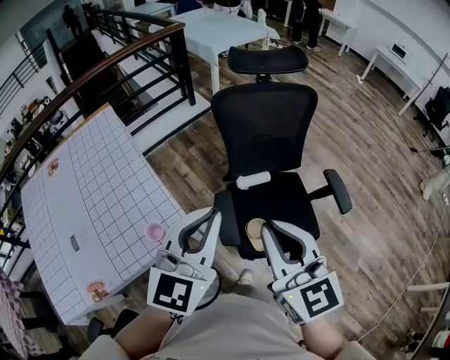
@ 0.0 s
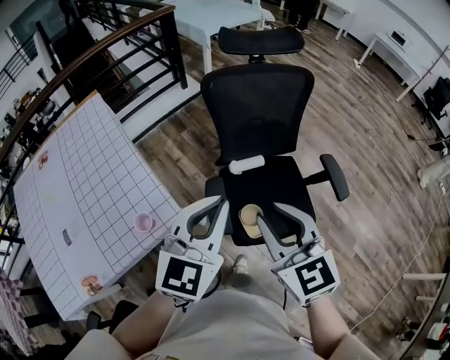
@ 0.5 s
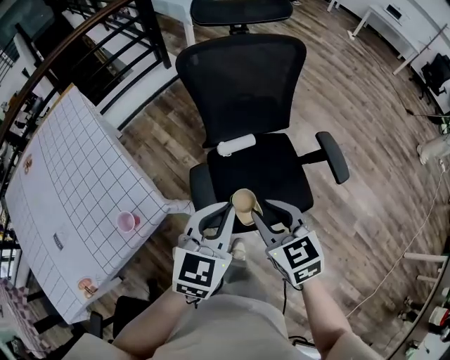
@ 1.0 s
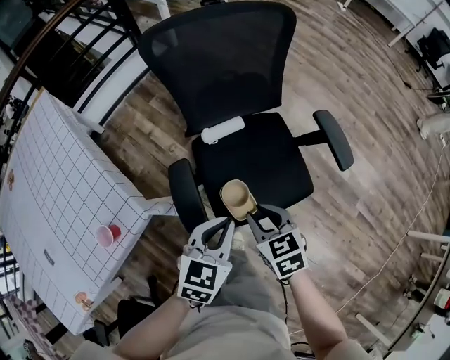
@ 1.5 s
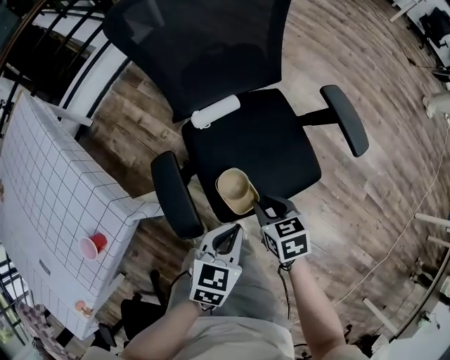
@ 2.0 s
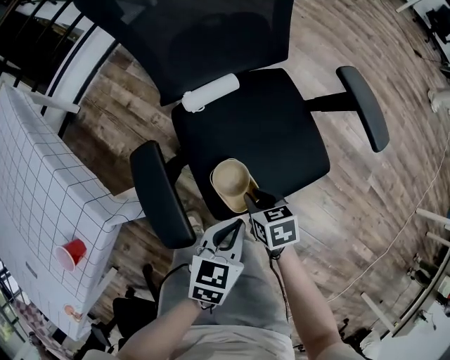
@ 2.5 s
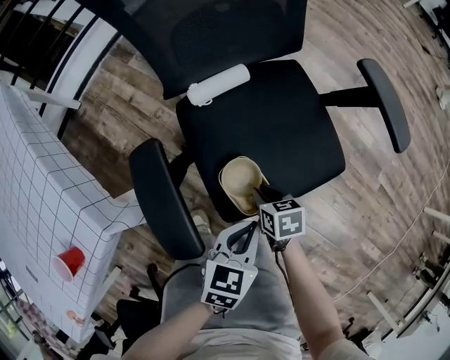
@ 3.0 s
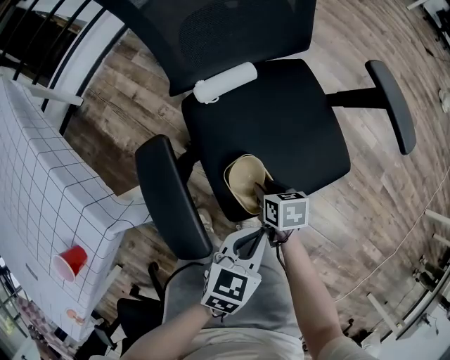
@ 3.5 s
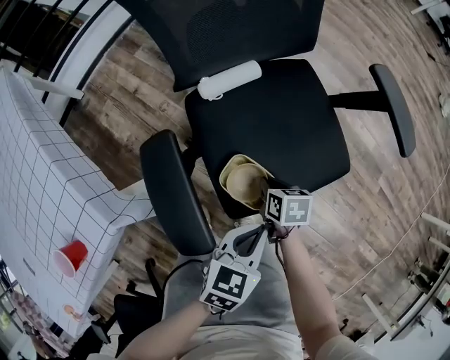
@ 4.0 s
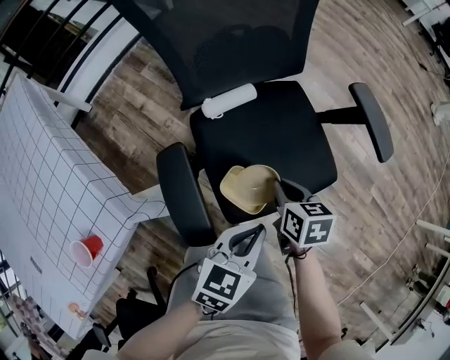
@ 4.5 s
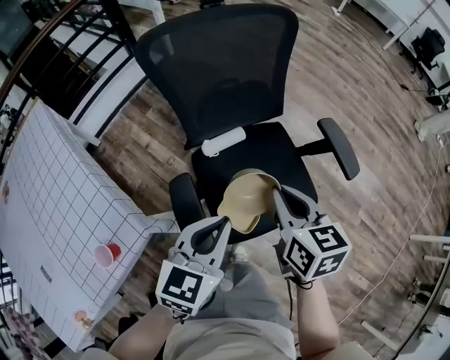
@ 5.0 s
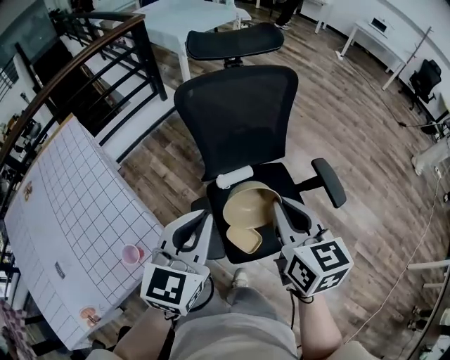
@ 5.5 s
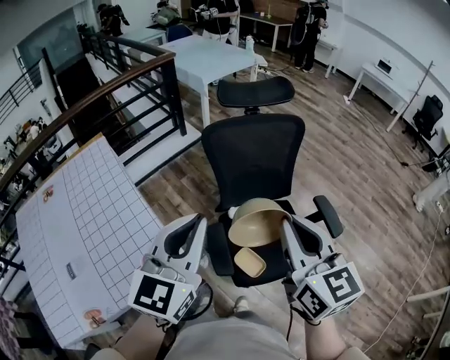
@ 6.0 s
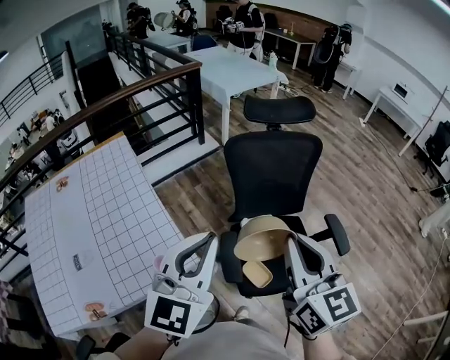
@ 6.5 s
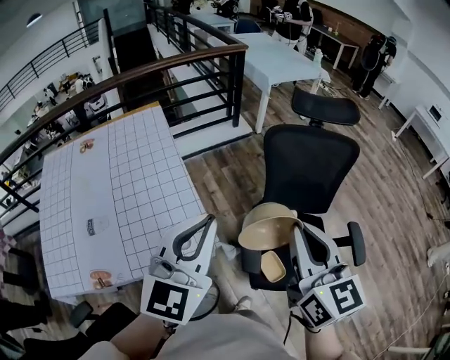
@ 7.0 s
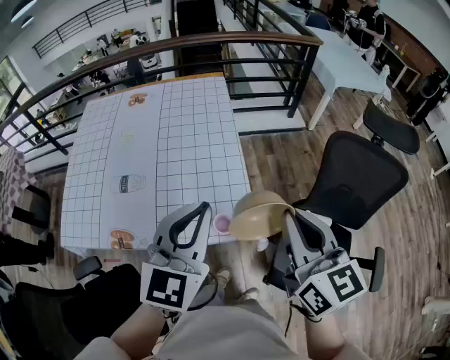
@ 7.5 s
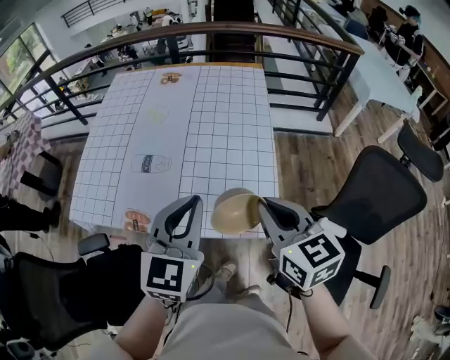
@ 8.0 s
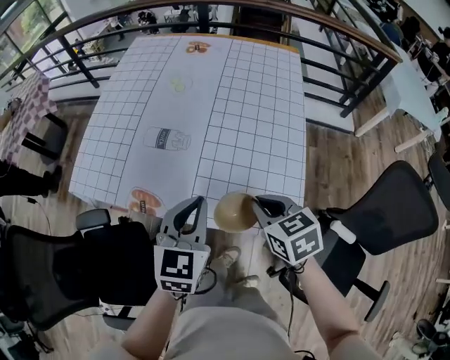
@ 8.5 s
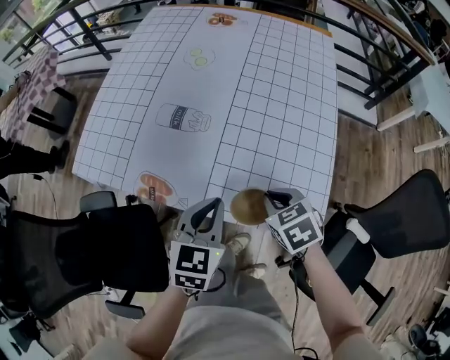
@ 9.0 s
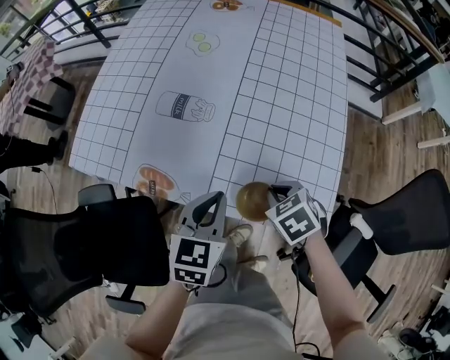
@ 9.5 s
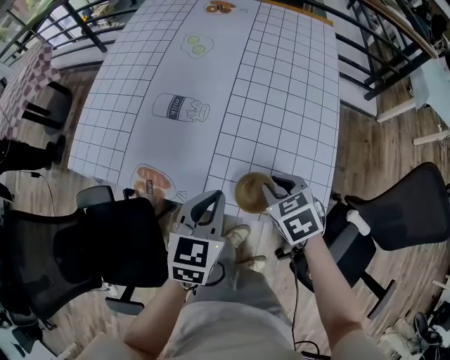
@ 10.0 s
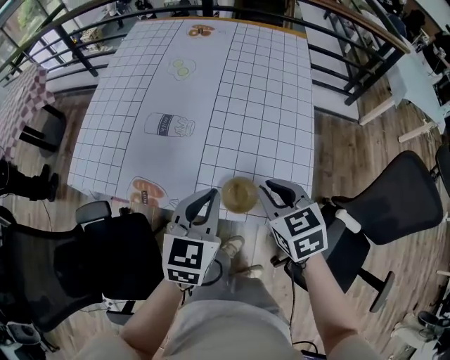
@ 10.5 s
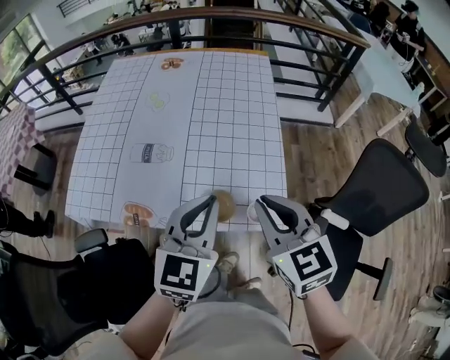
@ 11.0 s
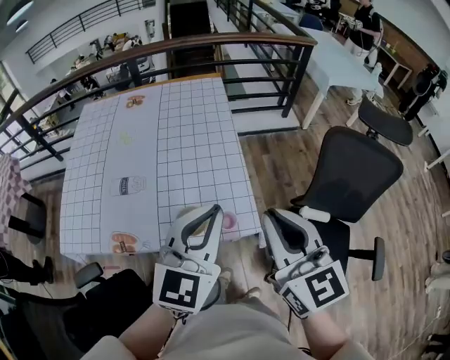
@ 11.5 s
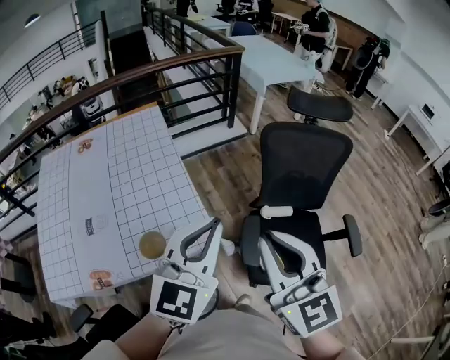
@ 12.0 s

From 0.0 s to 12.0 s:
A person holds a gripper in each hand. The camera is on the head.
From 0.0 s to 2.0 s: The right gripper goes some 50 cm downward, and tilts its fingers approximately 50 degrees downward; the left gripper heads downward and to the right, covering roughly 40 cm, and points its fingers approximately 40 degrees further downward.
From 2.0 s to 4.0 s: The right gripper shifts some 20 cm downward, and rotates some 20 degrees; the left gripper goes some 10 cm downward.
From 4.0 s to 6.0 s: The right gripper moves upward, roughly 70 cm, and points its fingers roughly 60 degrees further upward, while the left gripper goes roughly 60 cm upward and to the left, and points its fingers about 40 degrees further upward.
From 6.0 s to 8.0 s: The left gripper changes place by roughly 40 cm, and rotates some 50 degrees. The right gripper ends up approximately 40 cm from where it was, and changes its angle by roughly 60 degrees.
From 8.0 s to 10.0 s: Both grippers travel together downward, roughly 25 cm. The left gripper changes its angle by some 30 degrees; the right gripper angles its fingers downward, by approximately 40 degrees.
From 10.0 s to 12.0 s: The left gripper shifts by some 50 cm, and rotates some 50 degrees, while the right gripper shifts approximately 40 cm upward, and tilts its fingers about 60 degrees upward.

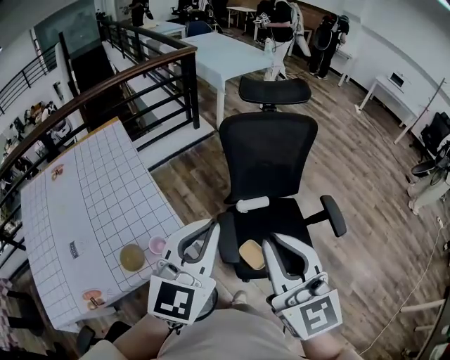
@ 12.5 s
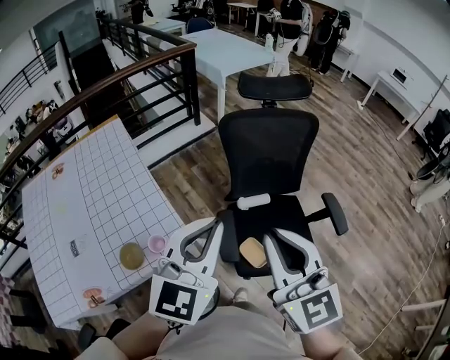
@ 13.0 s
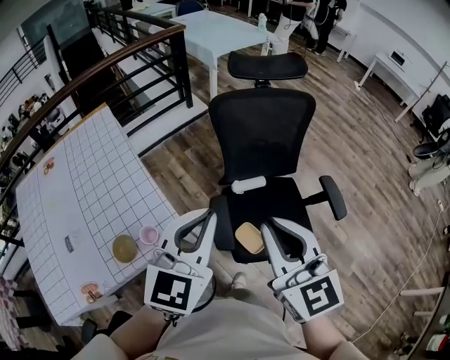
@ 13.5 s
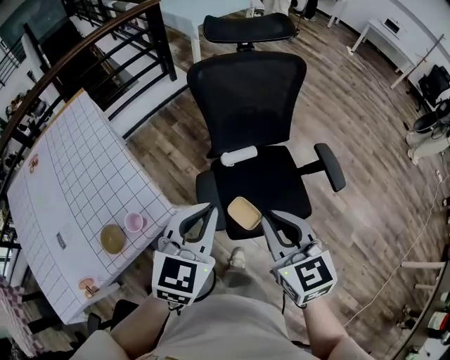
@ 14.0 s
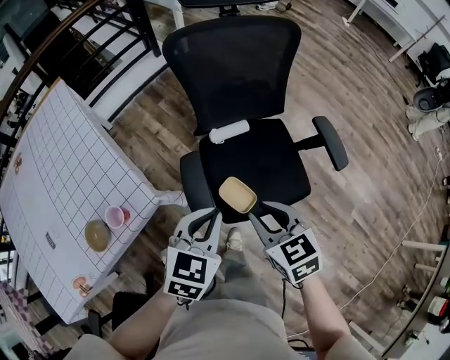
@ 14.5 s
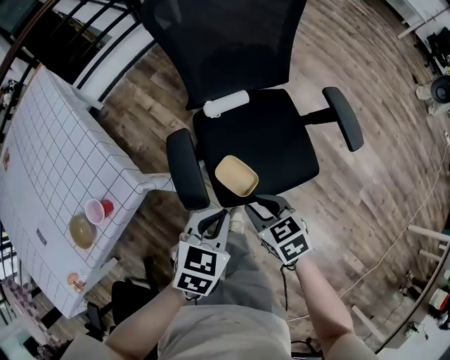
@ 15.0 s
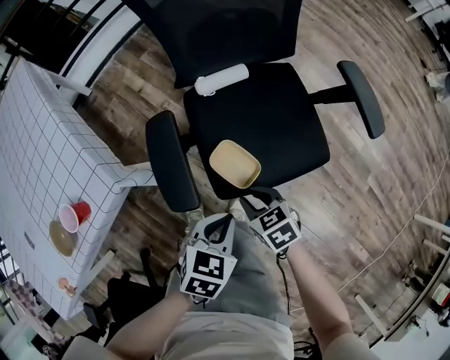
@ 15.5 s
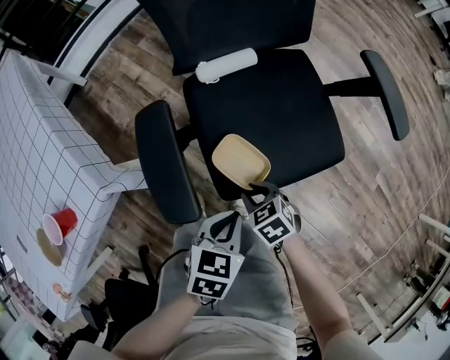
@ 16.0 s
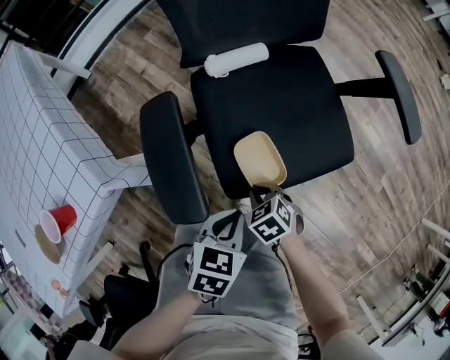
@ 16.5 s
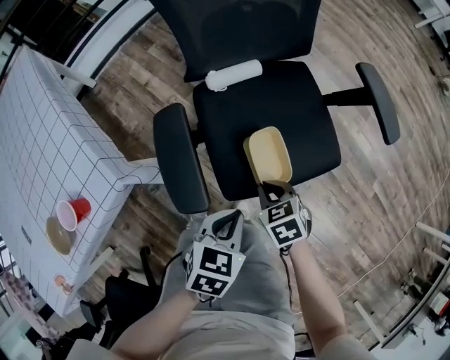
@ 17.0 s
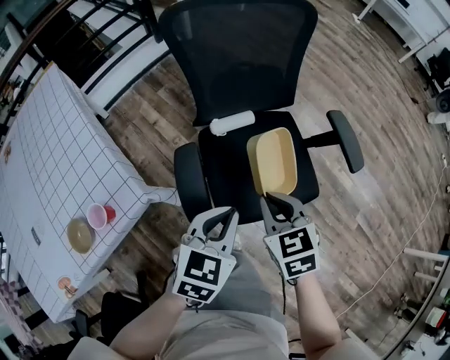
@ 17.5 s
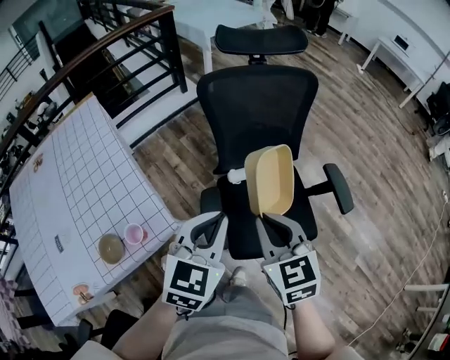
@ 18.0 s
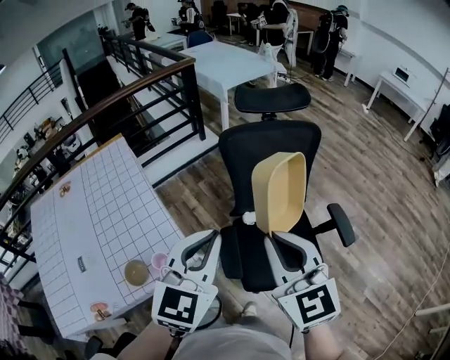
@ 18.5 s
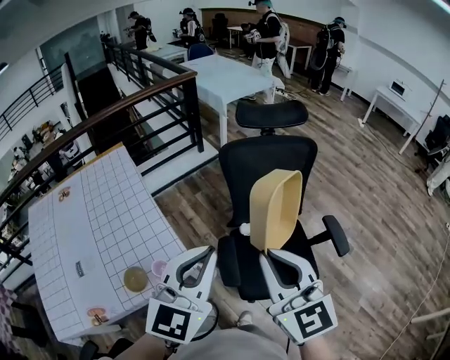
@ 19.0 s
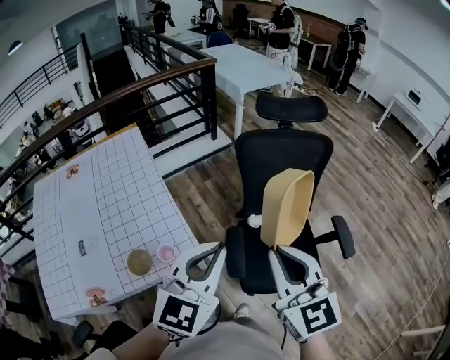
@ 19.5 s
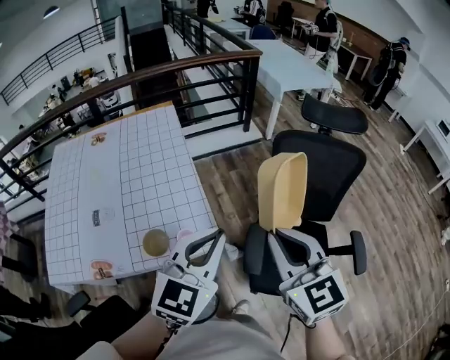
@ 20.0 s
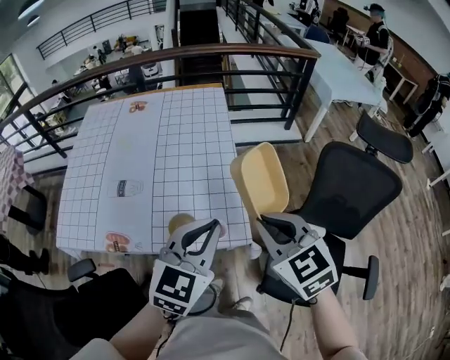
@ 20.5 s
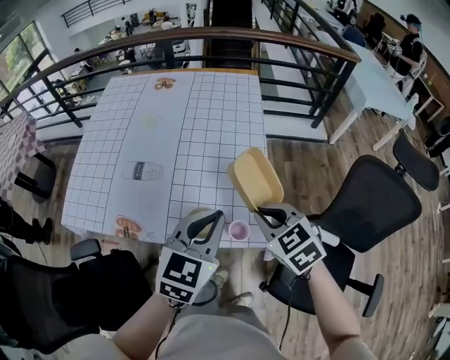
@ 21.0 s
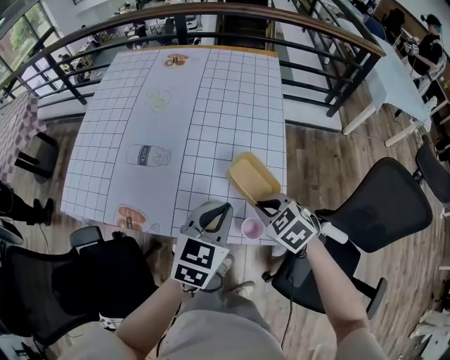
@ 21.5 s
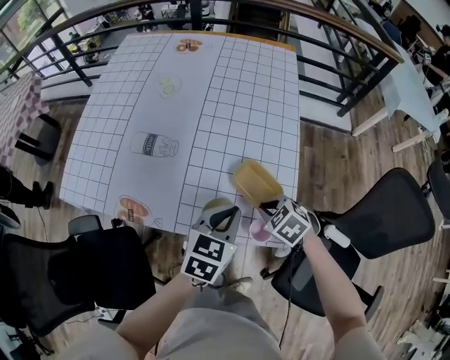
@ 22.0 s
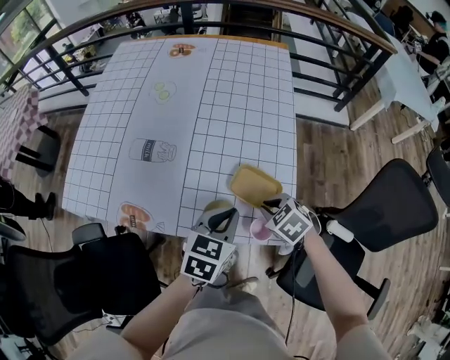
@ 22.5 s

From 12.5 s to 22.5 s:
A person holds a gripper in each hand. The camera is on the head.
From 12.5 s to 14.5 s: The left gripper shifts about 30 cm downward and to the right, and tilts its fingers roughly 30 degrees downward, while the right gripper is displaced downward by some 30 cm, and points its fingers some 40 degrees further downward.
From 14.5 s to 16.5 s: Both grippers move downward, roughly 35 cm. The right gripper changes its angle by approximately 30 degrees, while the left gripper turns by approximately 30 degrees.
From 16.5 s to 18.5 s: Both grippers travel together upward, roughly 60 cm. The right gripper angles its fingers upward, by some 60 degrees. Meanwhile the left gripper angles its fingers upward, by approximately 40 degrees.
From 18.5 s to 20.5 s: The left gripper shifts by about 25 cm, and turns by roughly 30 degrees. Meanwhile the right gripper ends up roughly 25 cm from where it was, and changes its angle by approximately 50 degrees.
From 20.5 s to 22.5 s: The left gripper shifts approximately 25 cm downward and forward, and turns by approximately 30 degrees; the right gripper moves downward, some 30 cm, and tilts its fingers some 30 degrees downward.

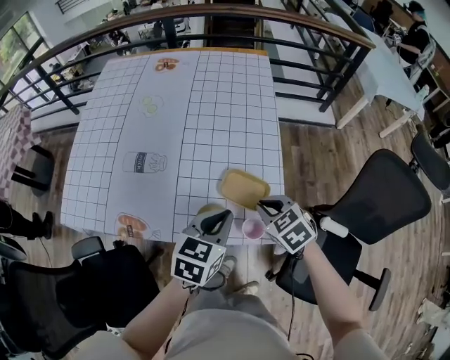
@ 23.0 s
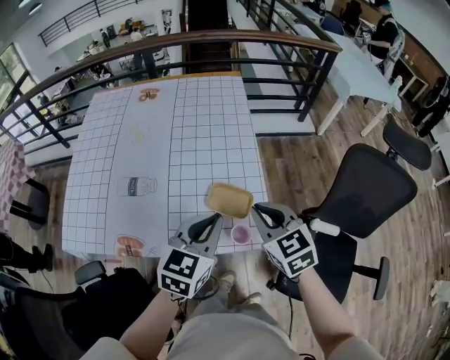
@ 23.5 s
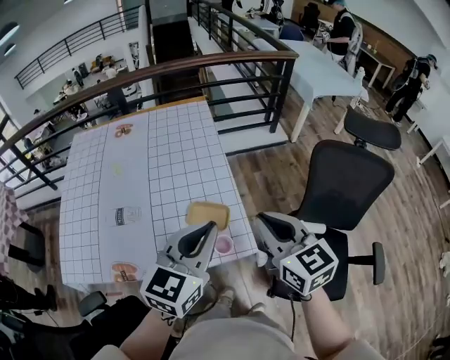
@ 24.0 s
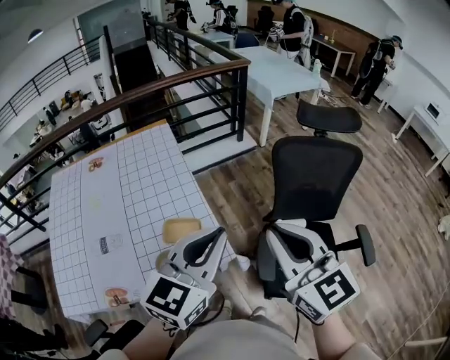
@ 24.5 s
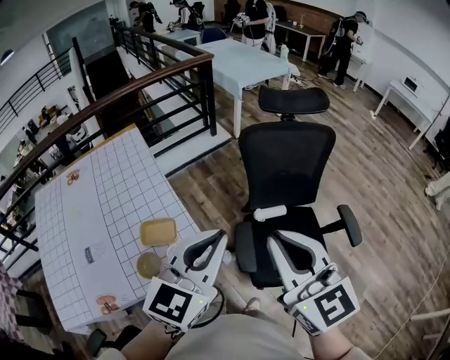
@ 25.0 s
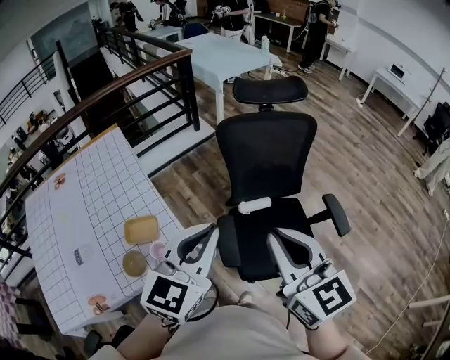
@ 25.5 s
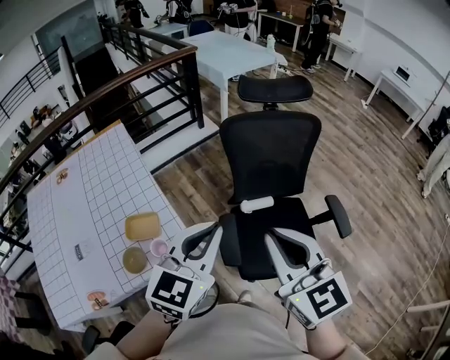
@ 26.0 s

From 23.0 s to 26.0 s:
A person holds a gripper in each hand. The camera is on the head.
From 23.0 s to 24.5 s: The grippers both shift upward by about 30 cm. The right gripper angles its fingers upward, by approximately 50 degrees. The left gripper changes its angle by about 40 degrees.
From 24.5 s to 26.0 s: Both grippers move to the right, roughly 15 cm.

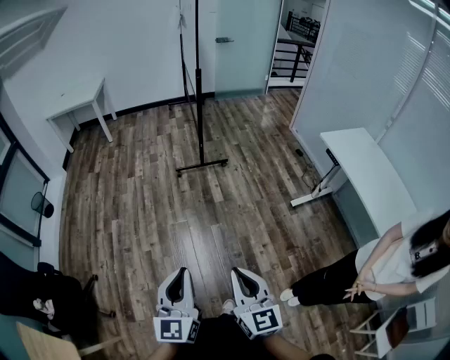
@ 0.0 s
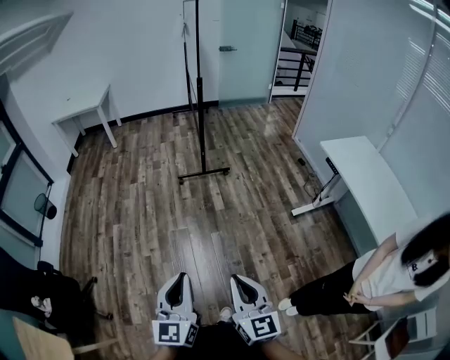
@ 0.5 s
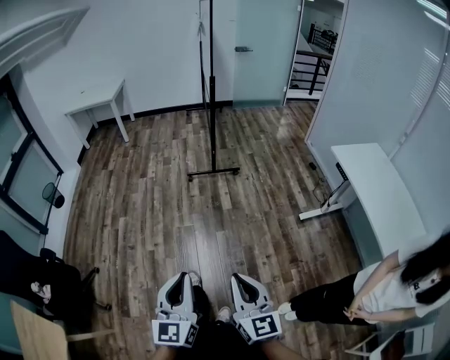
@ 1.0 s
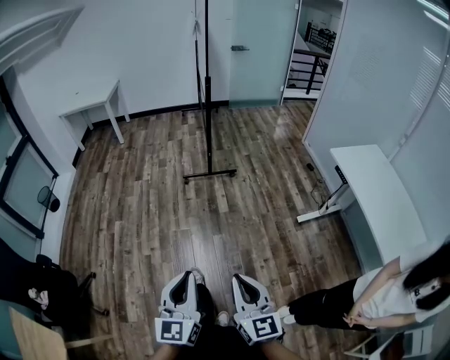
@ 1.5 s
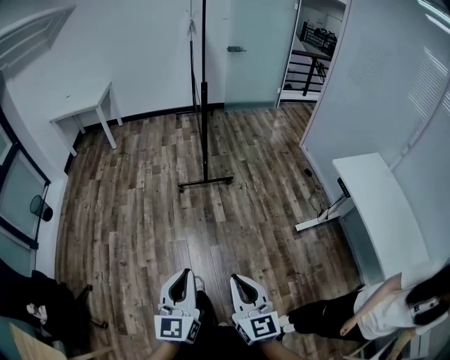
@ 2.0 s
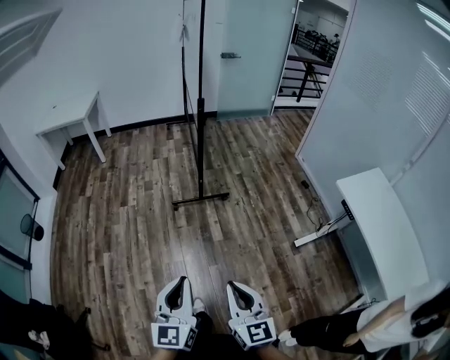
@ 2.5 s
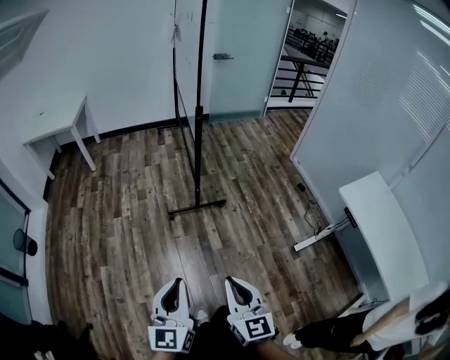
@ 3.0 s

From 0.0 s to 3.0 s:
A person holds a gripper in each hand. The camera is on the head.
From 0.0 s to 1.5 s: Both grippers travel together to the right, approximately 5 cm.
From 1.5 s to 3.0 s: The two grippers go approximately 40 cm forward.
